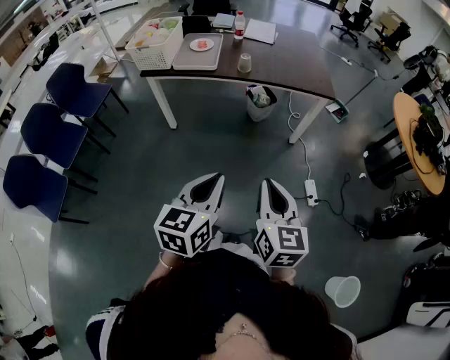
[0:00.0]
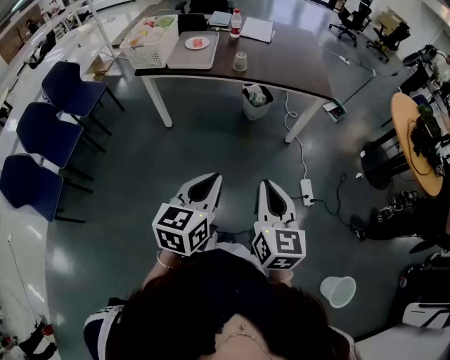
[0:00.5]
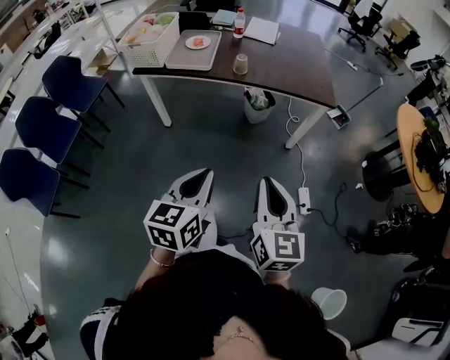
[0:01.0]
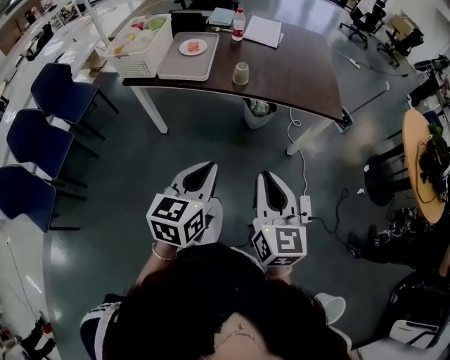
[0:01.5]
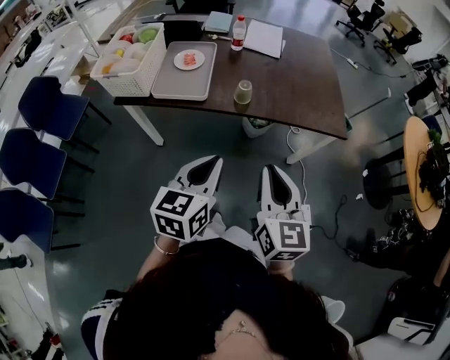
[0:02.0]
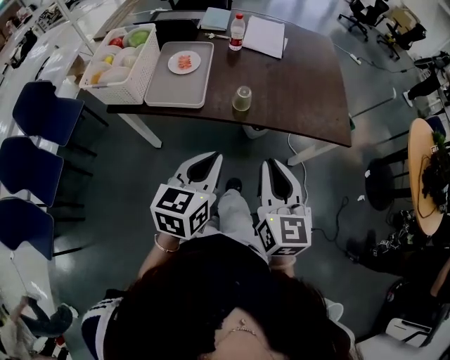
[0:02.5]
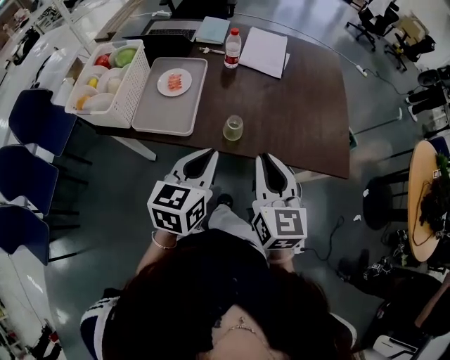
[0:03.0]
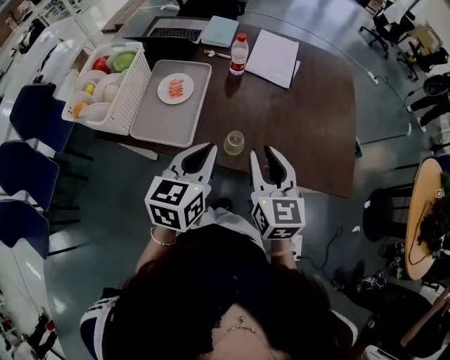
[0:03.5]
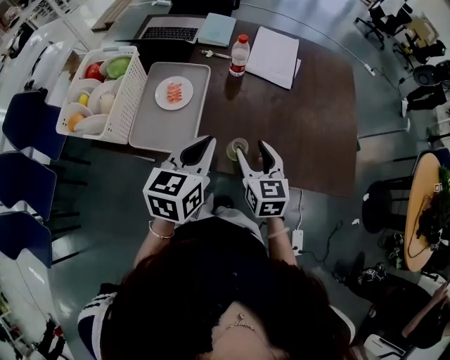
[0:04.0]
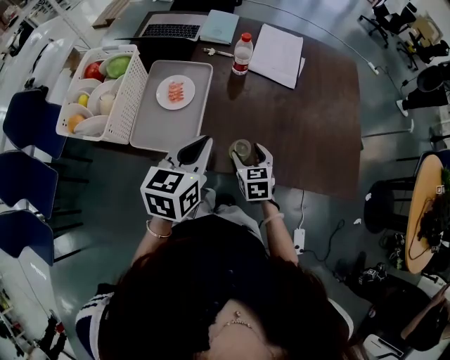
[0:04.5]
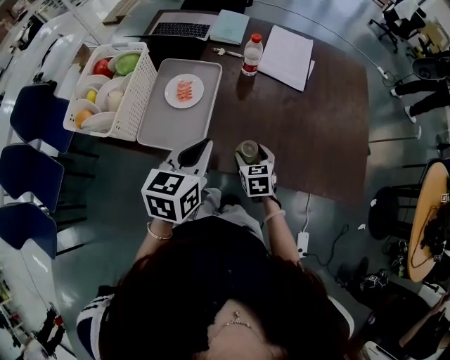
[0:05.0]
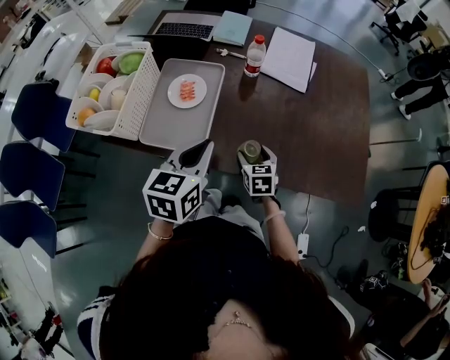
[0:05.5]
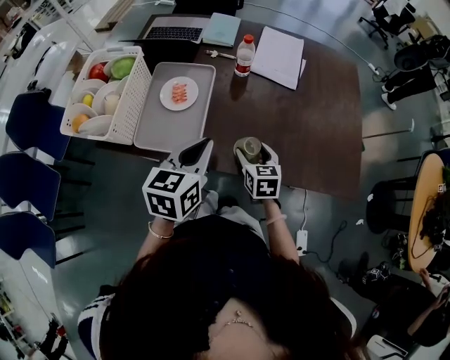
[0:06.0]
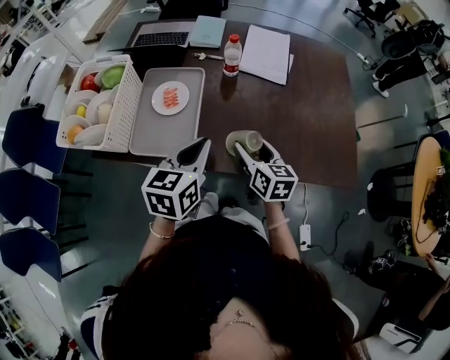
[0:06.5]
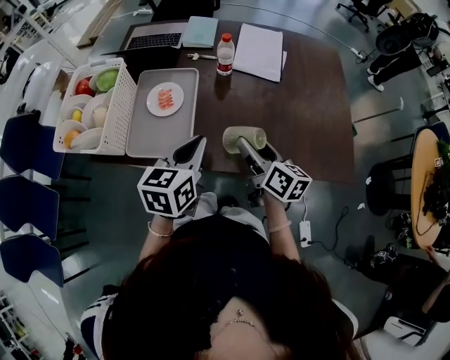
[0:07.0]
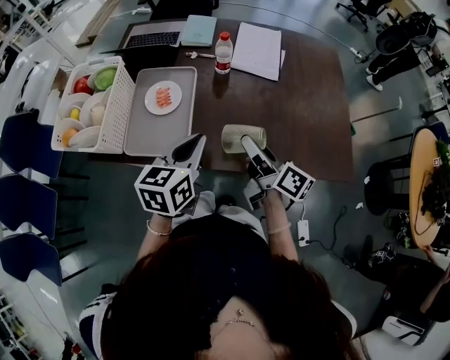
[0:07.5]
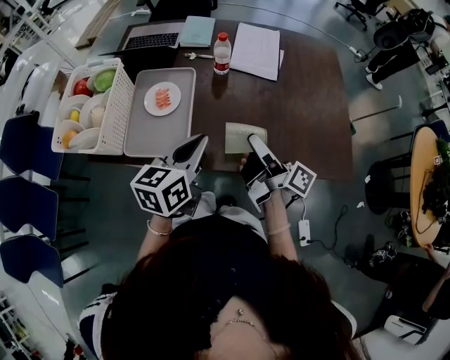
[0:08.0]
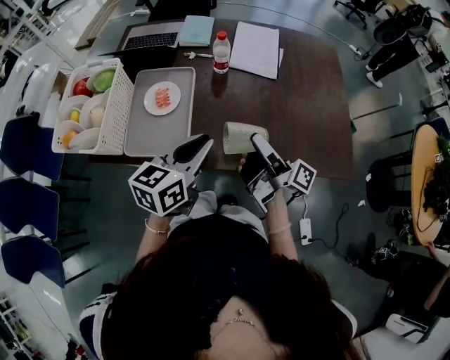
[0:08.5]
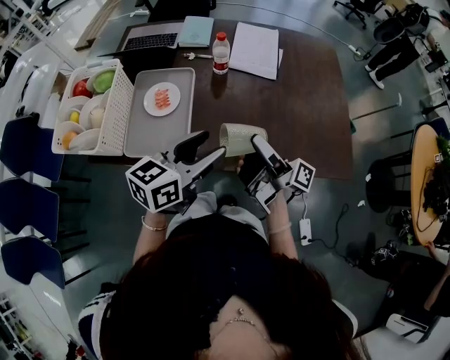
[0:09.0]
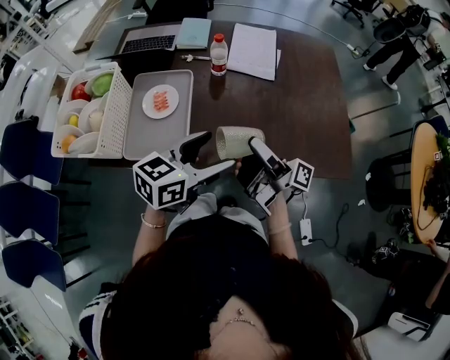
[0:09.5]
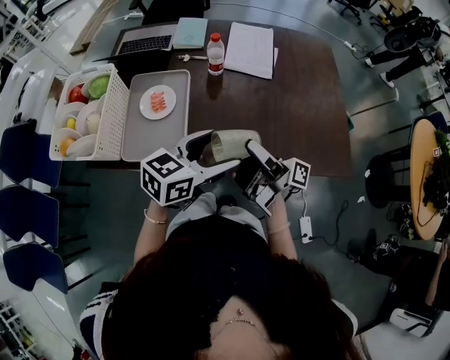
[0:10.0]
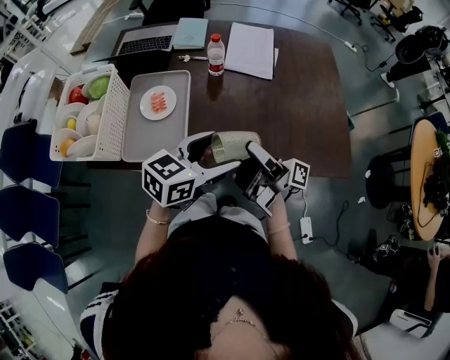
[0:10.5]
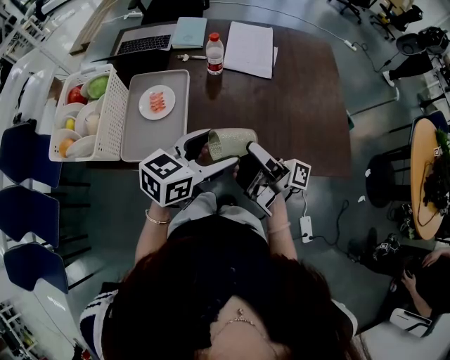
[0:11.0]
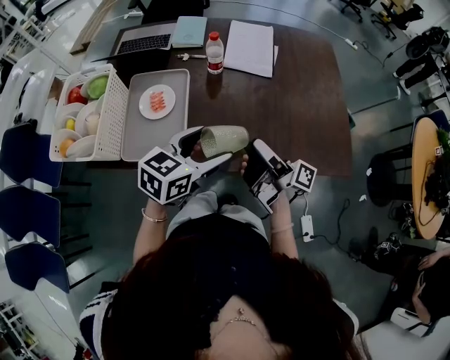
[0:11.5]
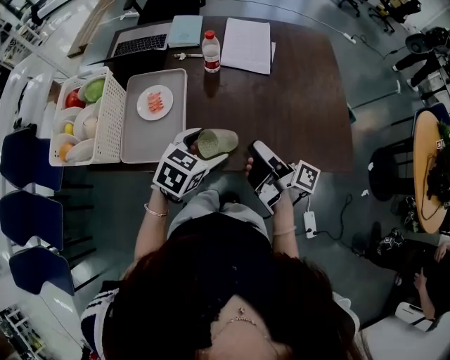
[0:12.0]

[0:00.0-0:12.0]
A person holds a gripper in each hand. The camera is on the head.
0:00.0 to 0:02.0: Both grippers move forward, approximately 35 cm.
0:02.0 to 0:04.0: The two grippers go approximately 35 cm forward. The right gripper opens its fingers.
0:04.0 to 0:06.0: The right gripper goes about 10 cm downward.
0:06.0 to 0:08.0: The right gripper moves upward, roughly 15 cm, and tilts its fingers some 40 degrees upward.
0:08.0 to 0:10.0: The left gripper shifts about 5 cm to the right, turns by some 30 degrees, and opens up, while the right gripper swivels approximately 20 degrees.
0:10.0 to 0:12.0: The grippers both shift downward by approximately 5 cm. The left gripper swivels about 30 degrees, while the right gripper changes its angle by some 20 degrees.

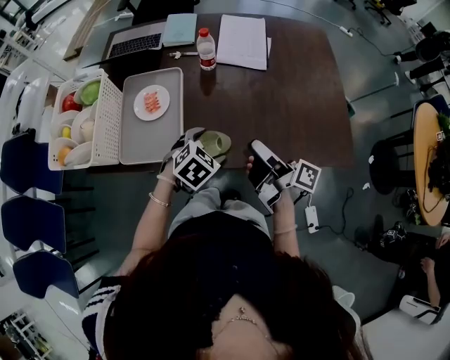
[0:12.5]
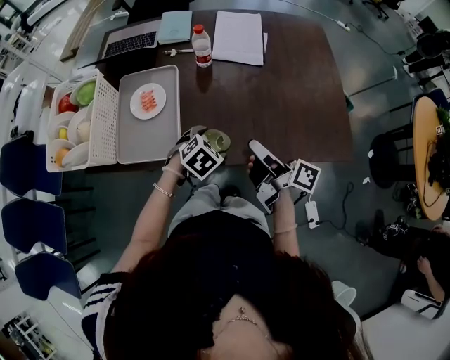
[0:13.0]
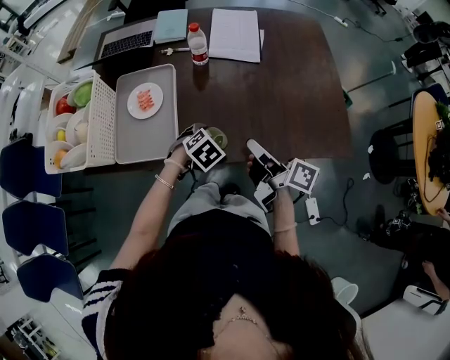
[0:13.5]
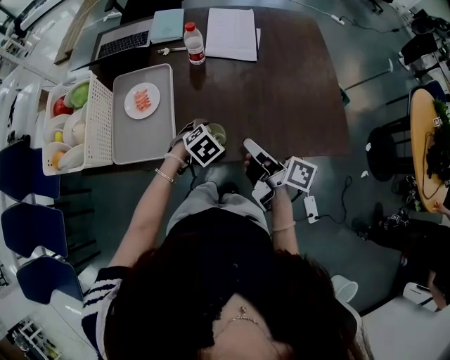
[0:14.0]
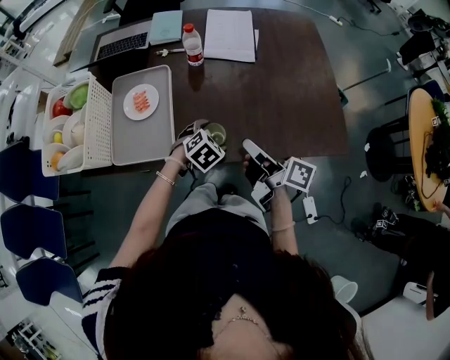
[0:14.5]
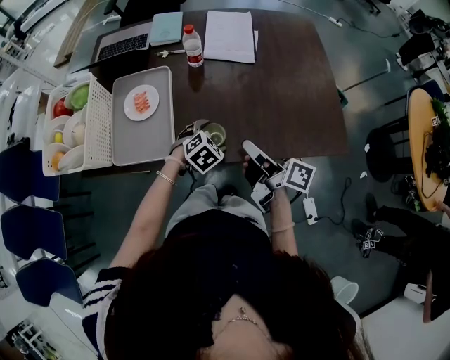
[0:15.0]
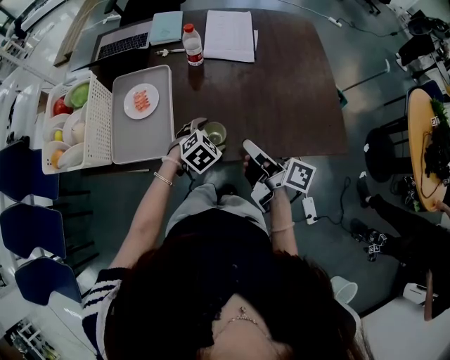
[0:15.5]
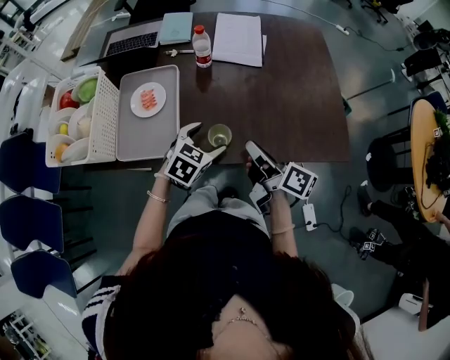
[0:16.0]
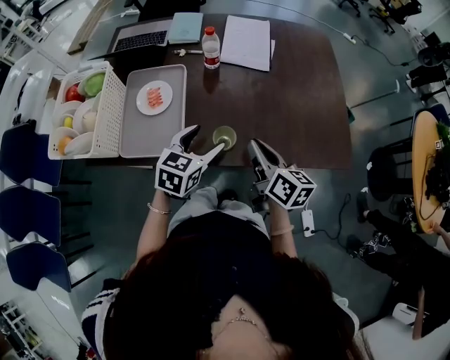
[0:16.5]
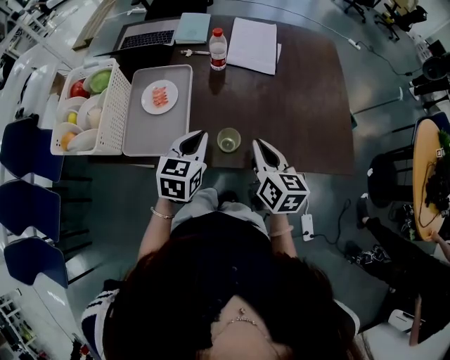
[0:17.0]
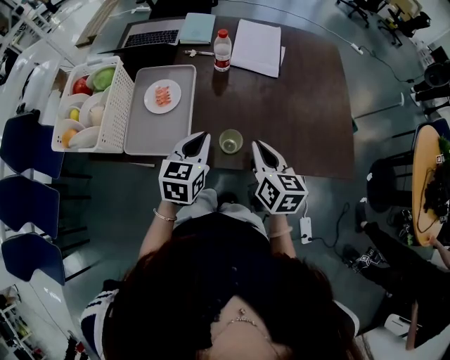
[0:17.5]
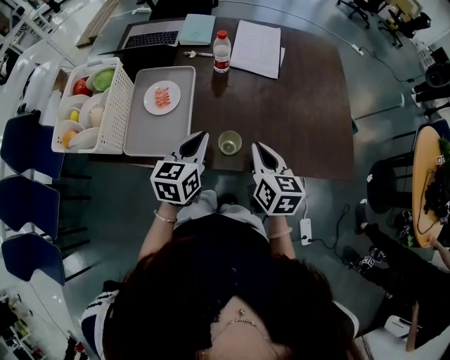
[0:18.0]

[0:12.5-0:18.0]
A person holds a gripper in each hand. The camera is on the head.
0:12.5 to 0:14.5: The right gripper closes up; the left gripper moves downward, some 5 cm.
0:14.5 to 0:16.0: The left gripper moves upward, some 10 cm, and swivels some 20 degrees.
0:16.0 to 0:18.0: The right gripper turns by about 50 degrees. Meanwhile the left gripper goes approximately 10 cm upward and to the left, rotates approximately 40 degrees, and closes.

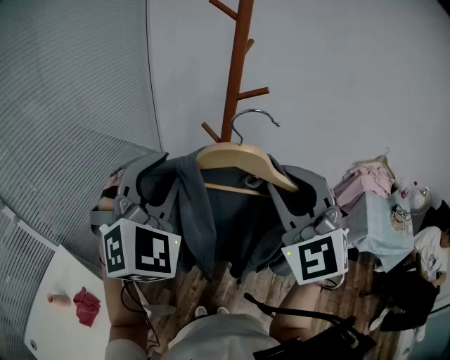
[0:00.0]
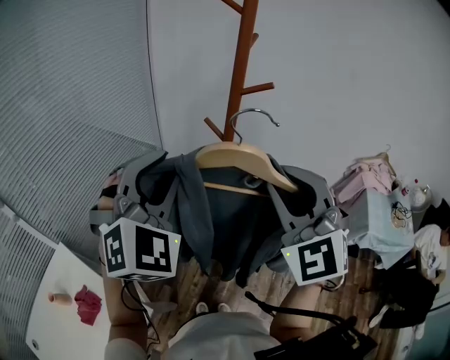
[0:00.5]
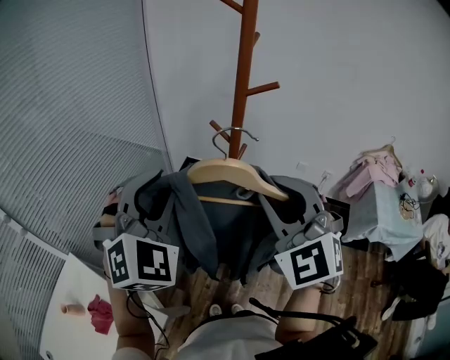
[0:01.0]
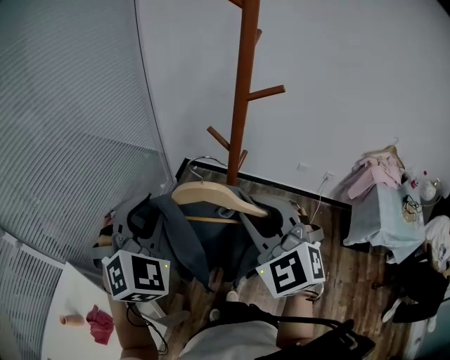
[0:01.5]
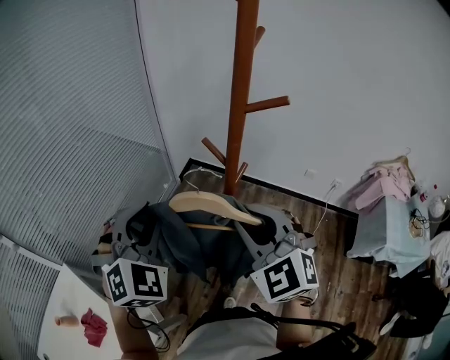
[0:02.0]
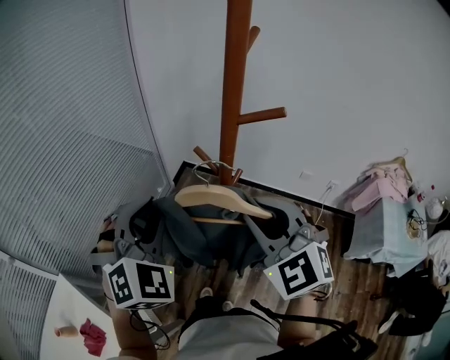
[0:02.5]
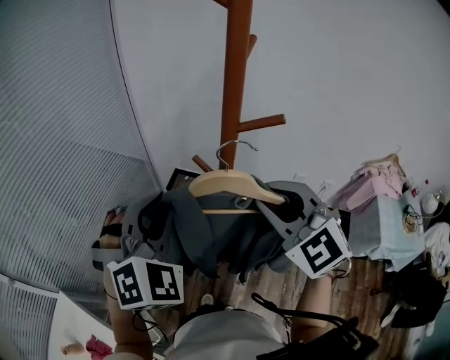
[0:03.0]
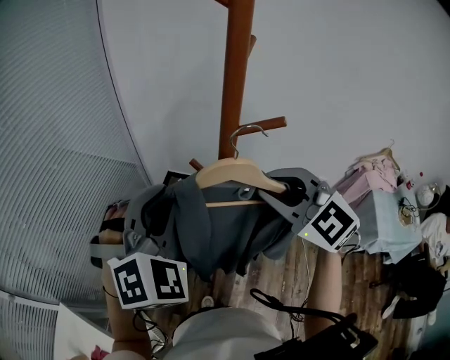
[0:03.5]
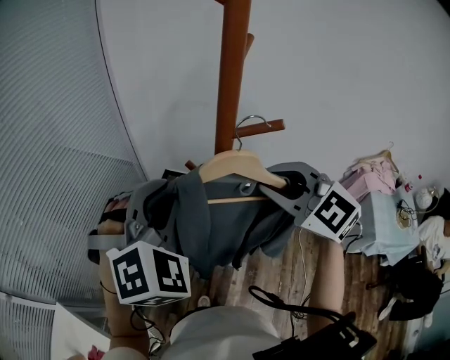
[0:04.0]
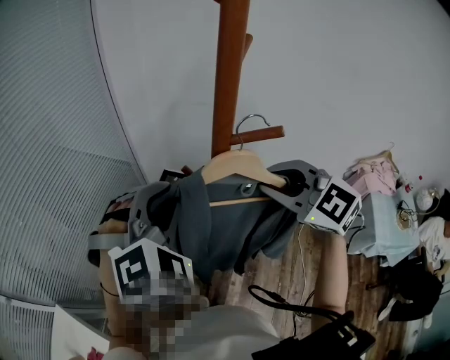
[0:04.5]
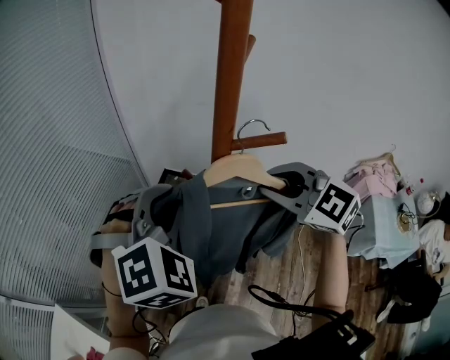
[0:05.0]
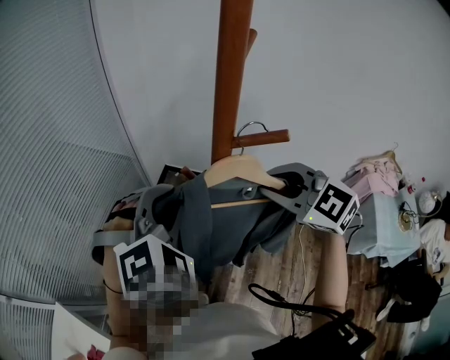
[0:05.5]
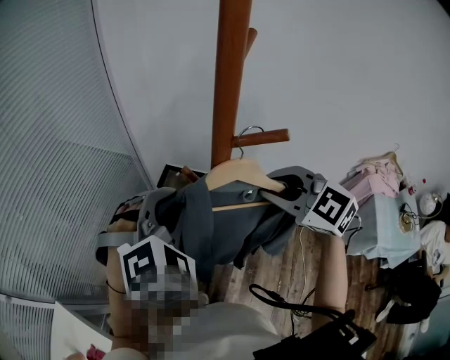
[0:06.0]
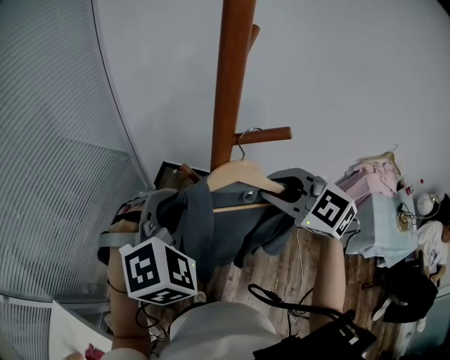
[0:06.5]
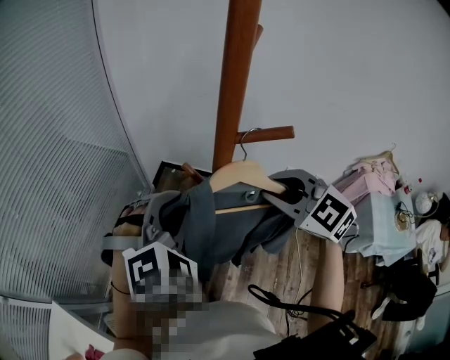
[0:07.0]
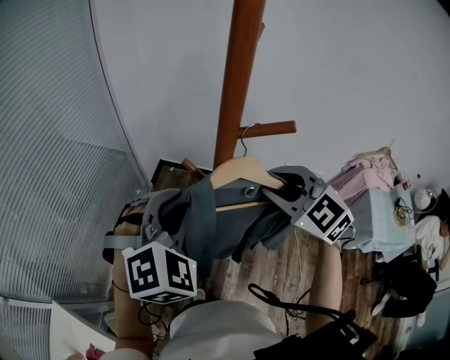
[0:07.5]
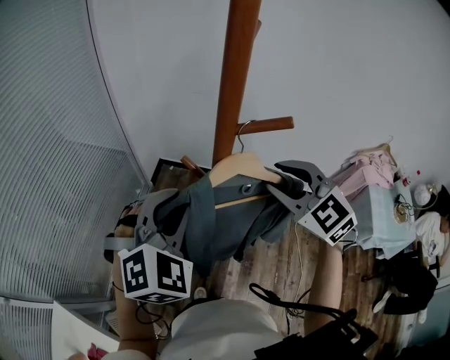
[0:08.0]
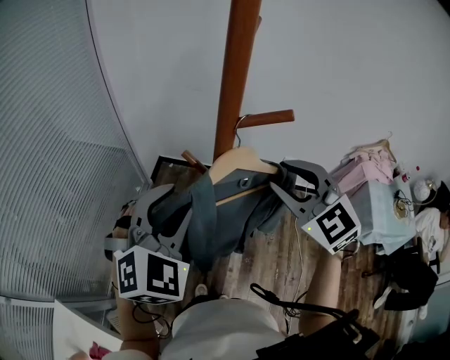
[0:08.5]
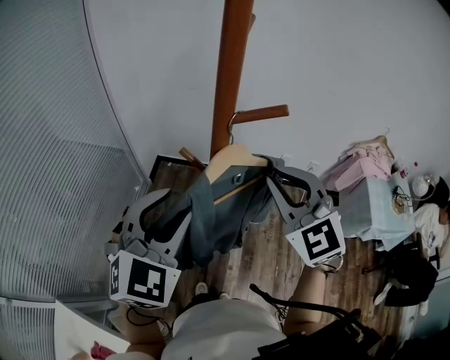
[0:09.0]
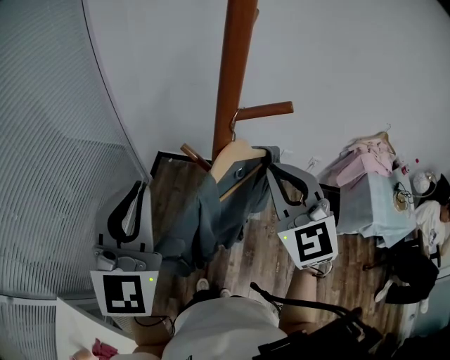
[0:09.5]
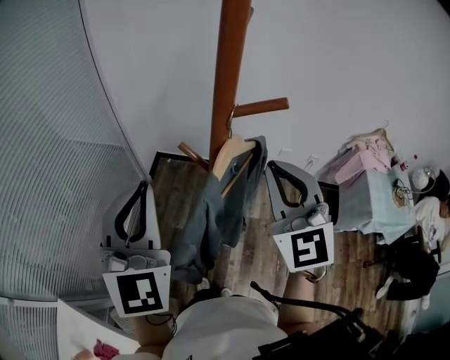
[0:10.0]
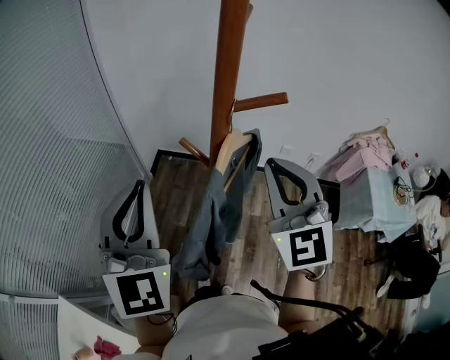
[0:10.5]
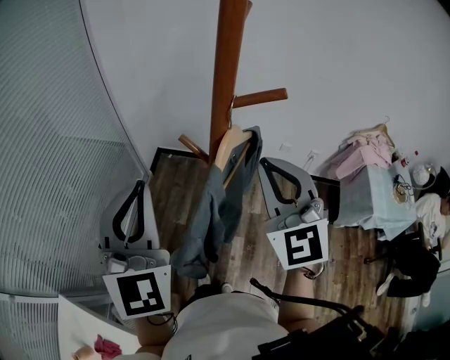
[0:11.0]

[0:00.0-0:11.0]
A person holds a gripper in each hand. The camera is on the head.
0:00.0 to 0:02.0: The grippers both shift downward, forward and to the left by about 15 cm.
0:02.0 to 0:03.5: The right gripper heads to the right and forward, covering roughly 15 cm; the left gripper goes approximately 15 cm to the right, forward and upward.
0:03.5 to 0:05.5: There are only small adjustments of the grippers.
0:05.5 to 0:07.5: The grippers stay close to where they were, moving slightly.
0:07.5 to 0:09.0: The right gripper changes its angle by approximately 20 degrees. The left gripper rotates roughly 20 degrees, and opens.
0:09.0 to 0:11.0: The left gripper heads to the left and upward, covering about 10 cm, swivels roughly 40 degrees, and closes up.
